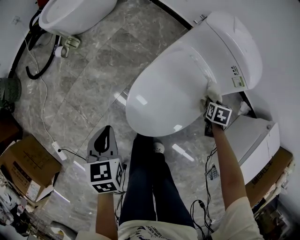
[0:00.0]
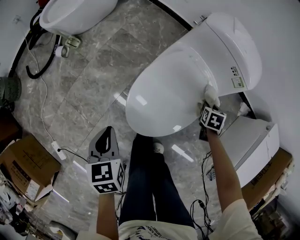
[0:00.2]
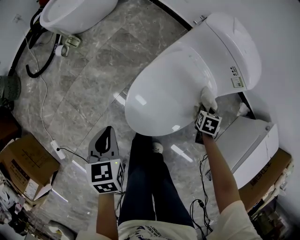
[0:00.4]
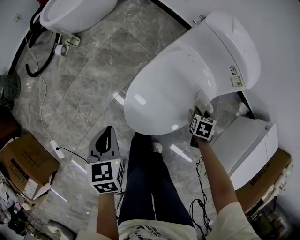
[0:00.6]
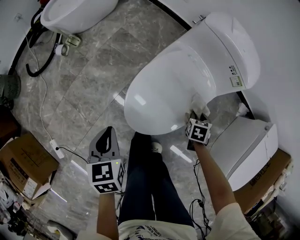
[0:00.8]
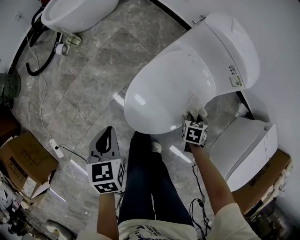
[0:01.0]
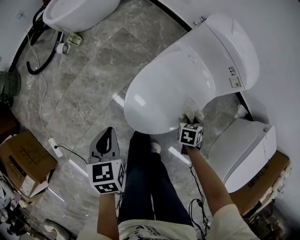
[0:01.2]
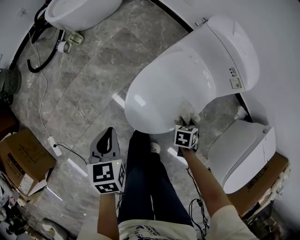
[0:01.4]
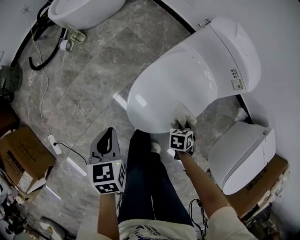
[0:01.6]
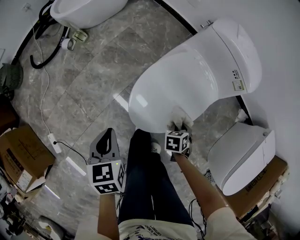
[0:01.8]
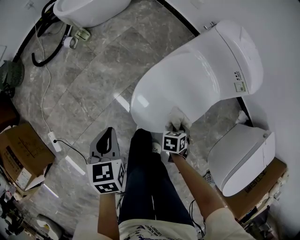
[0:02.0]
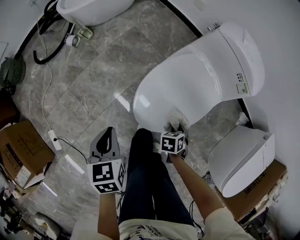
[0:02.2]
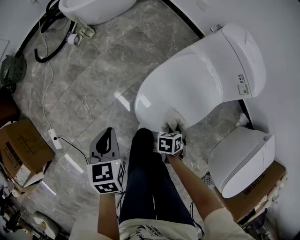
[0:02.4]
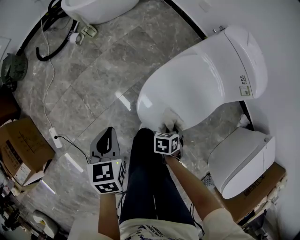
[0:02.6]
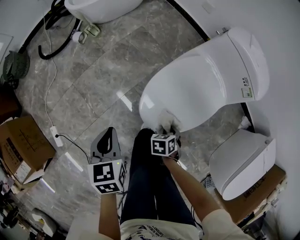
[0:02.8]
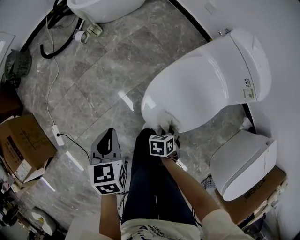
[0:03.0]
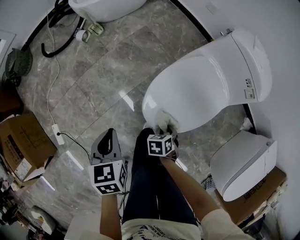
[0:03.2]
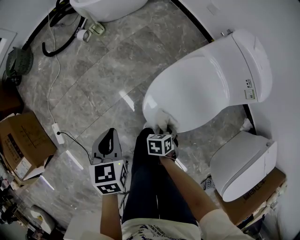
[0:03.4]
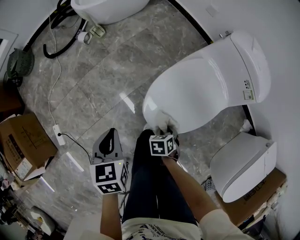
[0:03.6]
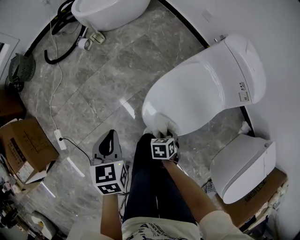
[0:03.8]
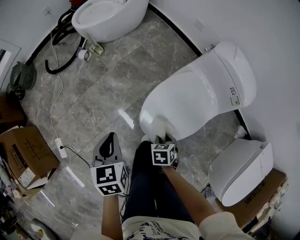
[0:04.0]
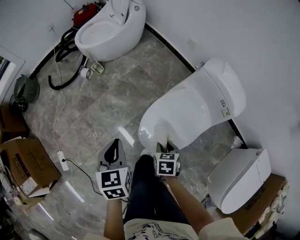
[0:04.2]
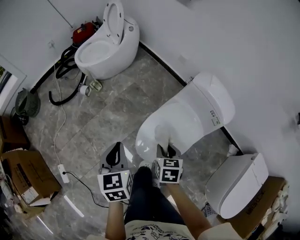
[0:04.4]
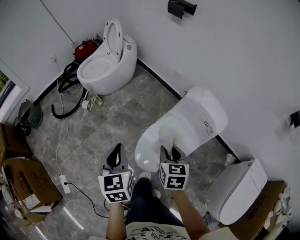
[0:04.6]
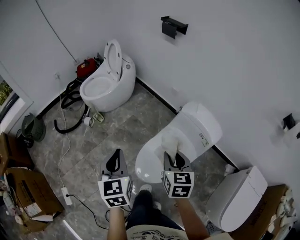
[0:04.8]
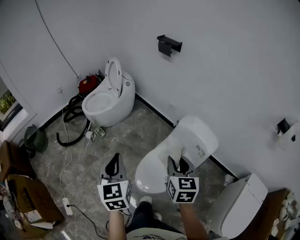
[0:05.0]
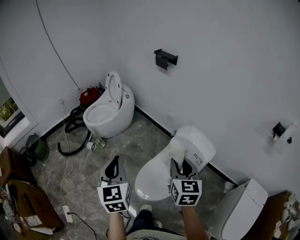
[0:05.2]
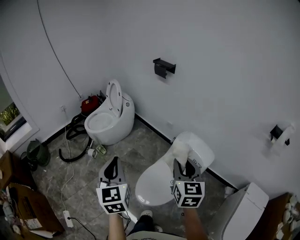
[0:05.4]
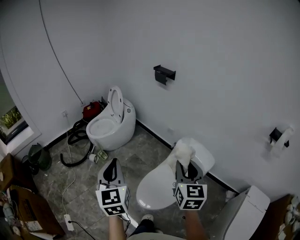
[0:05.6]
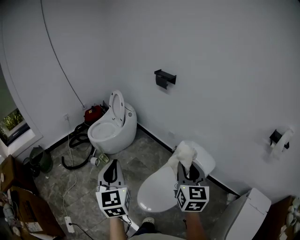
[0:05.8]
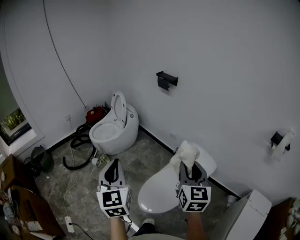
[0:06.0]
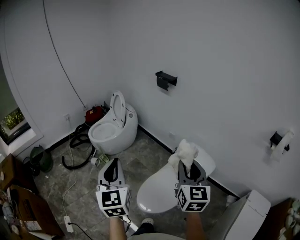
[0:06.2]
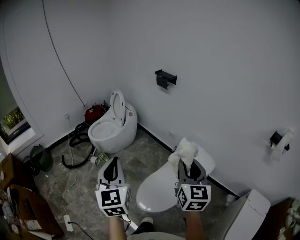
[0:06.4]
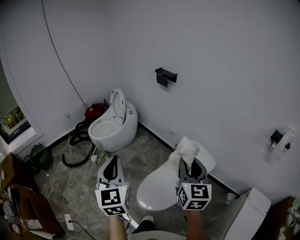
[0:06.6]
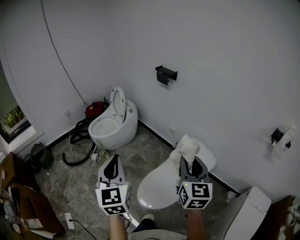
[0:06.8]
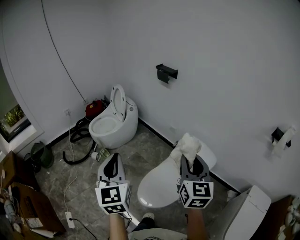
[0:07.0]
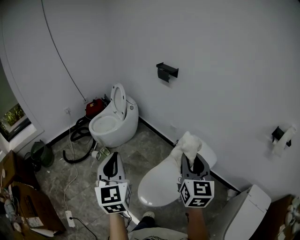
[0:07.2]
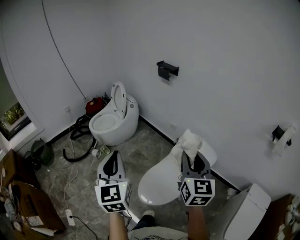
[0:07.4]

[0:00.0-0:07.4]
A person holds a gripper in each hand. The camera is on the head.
0:00.0 to 0:01.4: The right gripper travels backward and to the left by roughly 15 cm.
0:01.4 to 0:03.0: The left gripper changes place by about 10 cm, while the right gripper changes place by roughly 20 cm.
0:03.0 to 0:04.4: The left gripper moves upward, roughly 20 cm. The right gripper is displaced upward by some 25 cm, and turns by approximately 30 degrees.
0:04.4 to 0:06.0: The two grippers go about 35 cm upward. The left gripper points its fingers some 30 degrees further upward; the right gripper angles its fingers upward, by roughly 40 degrees.
0:06.0 to 0:07.4: Both grippers stay put.

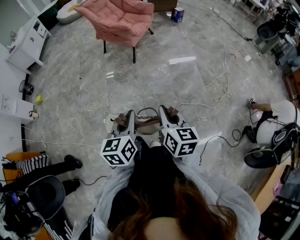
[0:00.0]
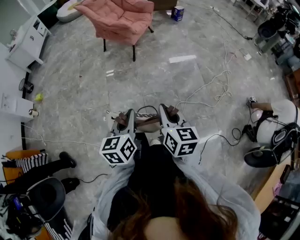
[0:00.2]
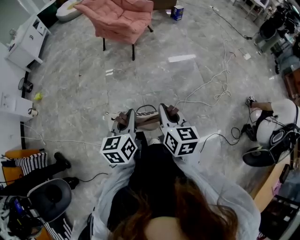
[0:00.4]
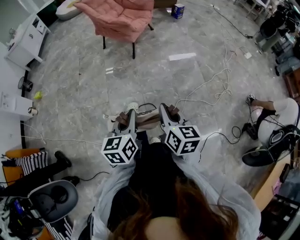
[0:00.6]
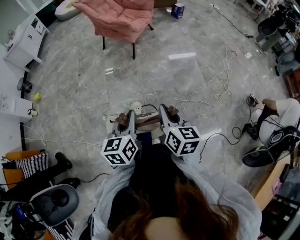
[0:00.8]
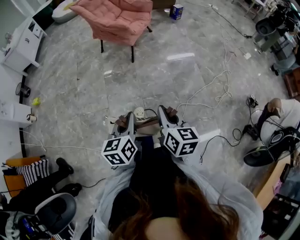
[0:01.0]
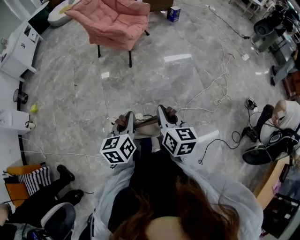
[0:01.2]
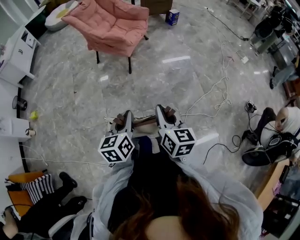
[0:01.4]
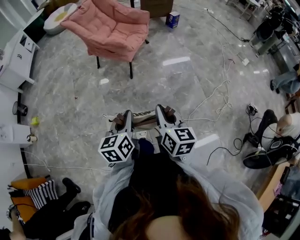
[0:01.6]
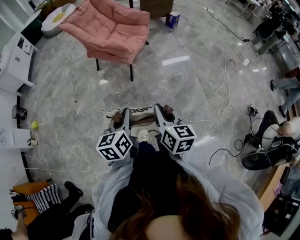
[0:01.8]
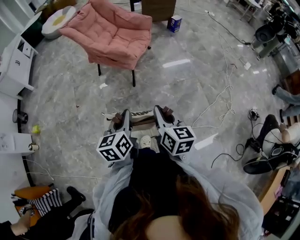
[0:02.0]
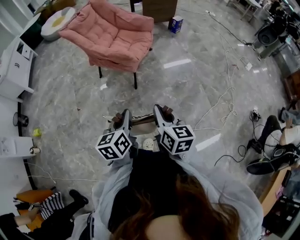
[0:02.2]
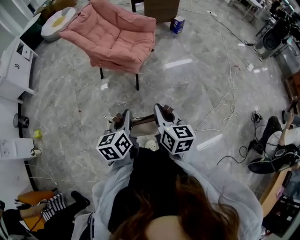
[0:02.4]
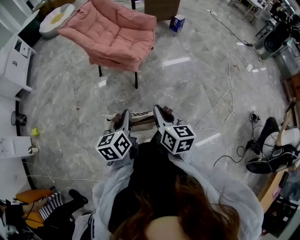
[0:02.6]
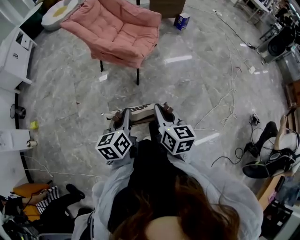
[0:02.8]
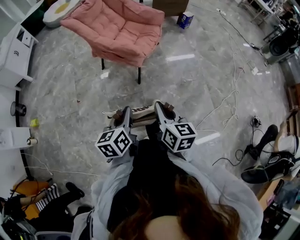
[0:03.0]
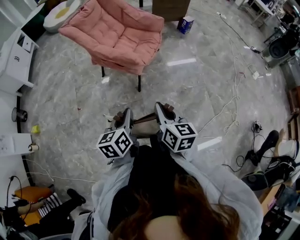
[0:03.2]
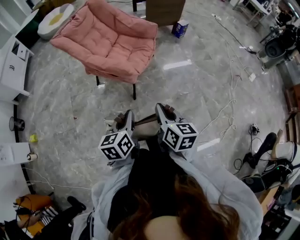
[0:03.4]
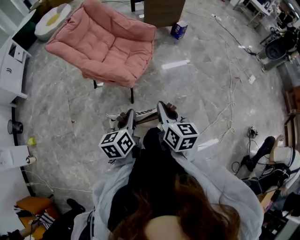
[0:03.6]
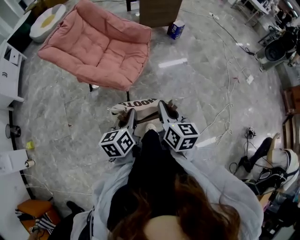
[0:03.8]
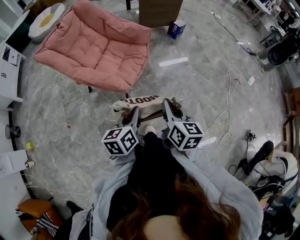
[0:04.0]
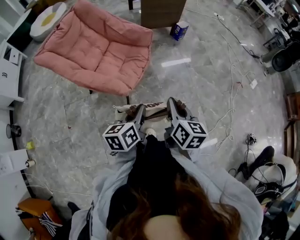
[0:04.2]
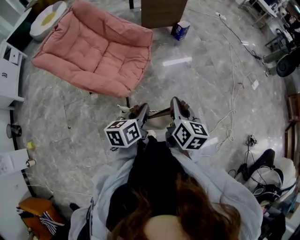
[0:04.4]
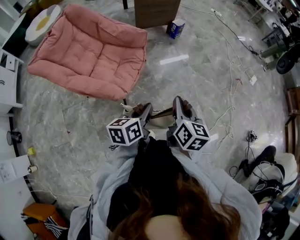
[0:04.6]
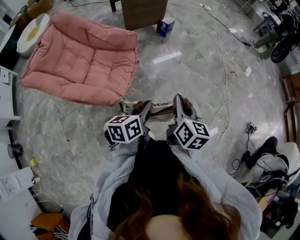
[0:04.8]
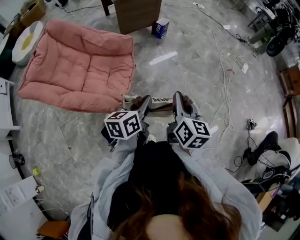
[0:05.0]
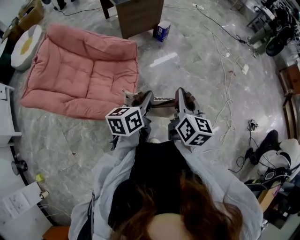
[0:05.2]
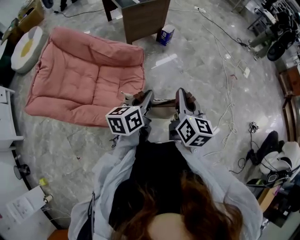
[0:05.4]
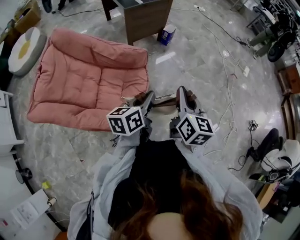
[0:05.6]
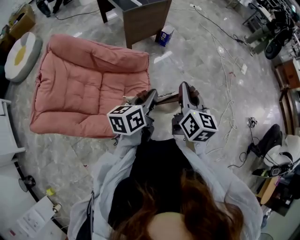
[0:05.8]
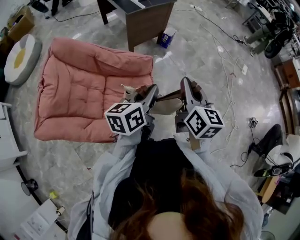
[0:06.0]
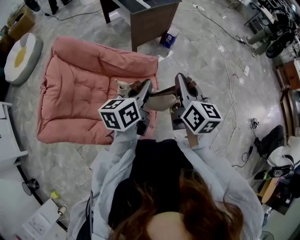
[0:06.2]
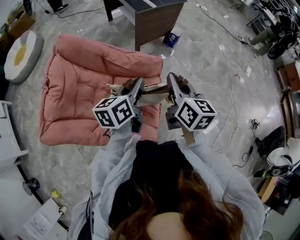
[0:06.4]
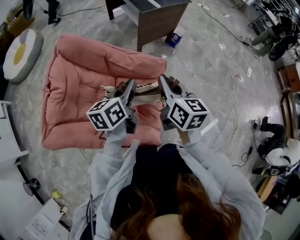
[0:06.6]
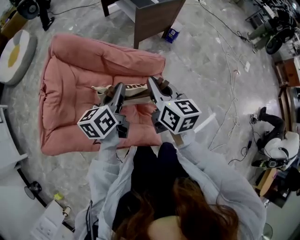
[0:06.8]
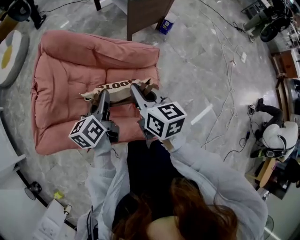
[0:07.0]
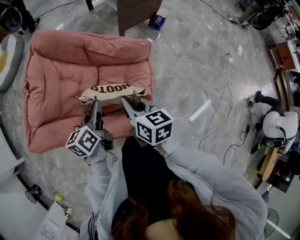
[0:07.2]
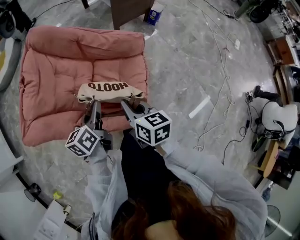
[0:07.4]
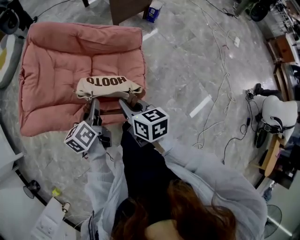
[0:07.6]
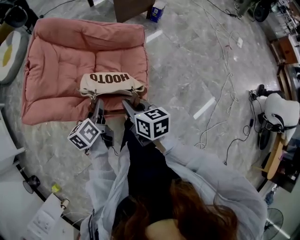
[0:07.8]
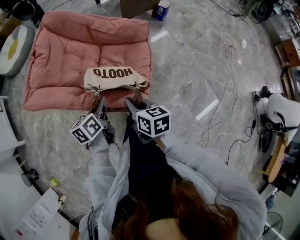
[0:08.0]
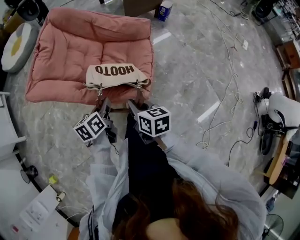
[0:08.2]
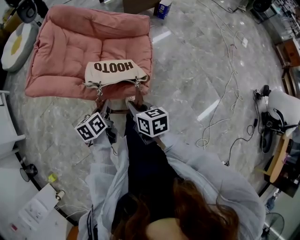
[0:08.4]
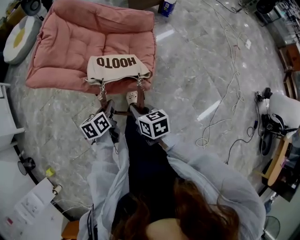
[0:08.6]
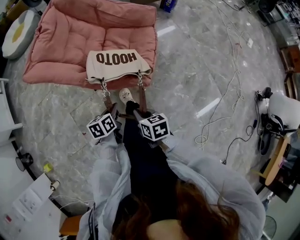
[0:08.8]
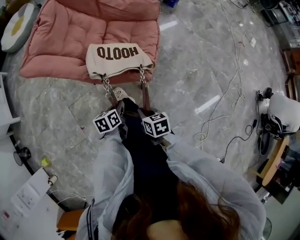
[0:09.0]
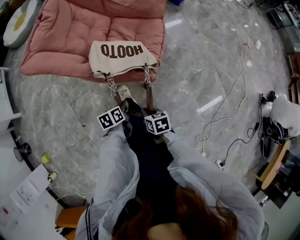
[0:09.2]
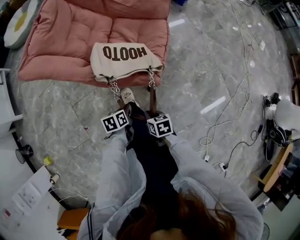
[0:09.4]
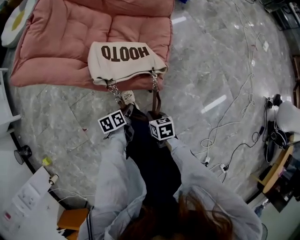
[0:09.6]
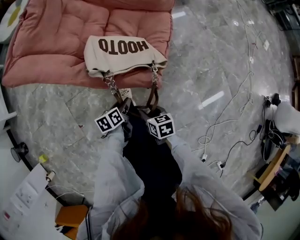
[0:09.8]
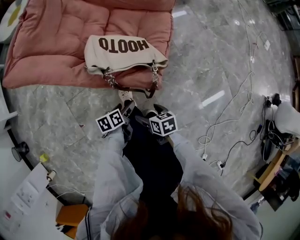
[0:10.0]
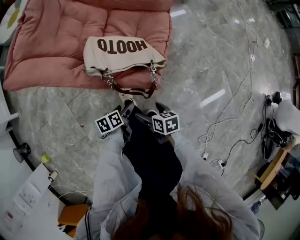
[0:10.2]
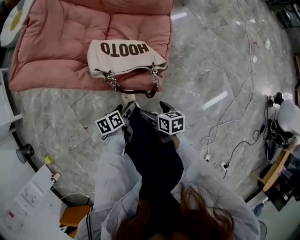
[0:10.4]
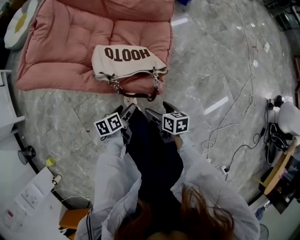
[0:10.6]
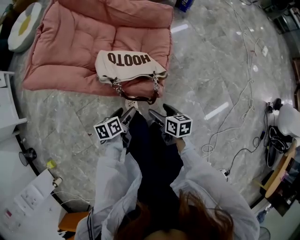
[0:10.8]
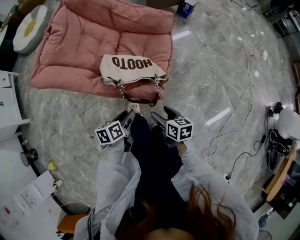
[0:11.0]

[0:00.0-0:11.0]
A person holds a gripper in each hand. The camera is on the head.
0:00.0 to 0:01.6: Both grippers move forward, roughly 25 cm.
0:01.6 to 0:03.2: Both grippers travel together forward, approximately 25 cm.
0:03.2 to 0:04.8: The right gripper moves approximately 35 cm, and changes its angle by some 30 degrees; the left gripper ends up about 40 cm from where it was, and changes its angle by about 30 degrees.
0:04.8 to 0:06.2: The grippers both shift to the left and forward by roughly 35 cm.
0:06.2 to 0:07.8: The left gripper shifts roughly 30 cm to the left, backward and downward, and turns by about 20 degrees. Meanwhile the right gripper heads backward, downward and to the left, covering some 30 cm, and swivels about 30 degrees.
0:07.8 to 0:09.4: Both grippers travel together downward and backward, about 30 cm. The right gripper swivels roughly 30 degrees. The left gripper changes its angle by approximately 30 degrees.
0:09.4 to 0:11.0: The right gripper travels upward, forward and to the right by some 15 cm, rotates approximately 20 degrees, and opens, while the left gripper moves upward, some 10 cm, and opens.

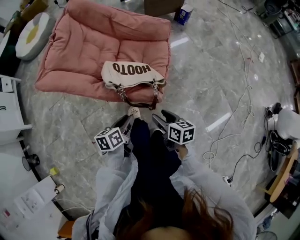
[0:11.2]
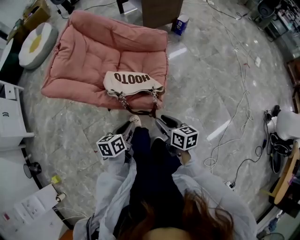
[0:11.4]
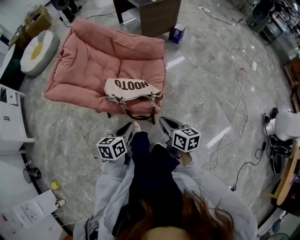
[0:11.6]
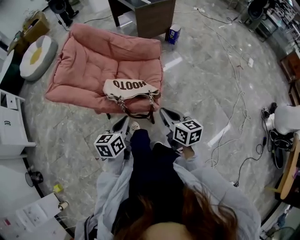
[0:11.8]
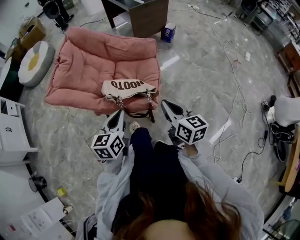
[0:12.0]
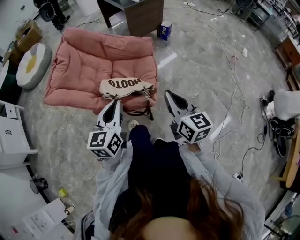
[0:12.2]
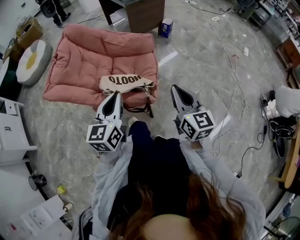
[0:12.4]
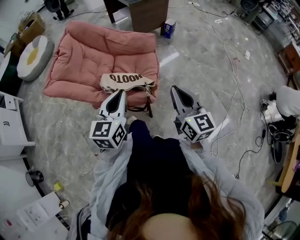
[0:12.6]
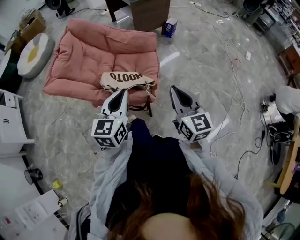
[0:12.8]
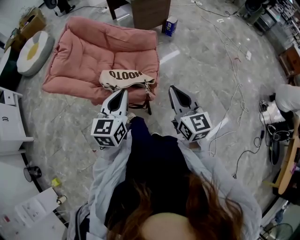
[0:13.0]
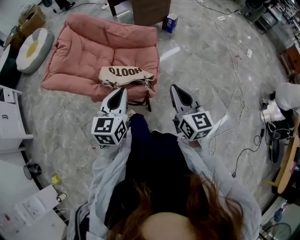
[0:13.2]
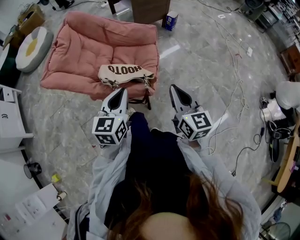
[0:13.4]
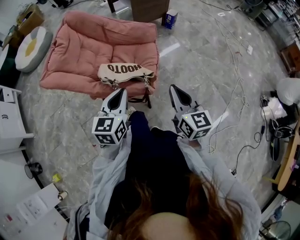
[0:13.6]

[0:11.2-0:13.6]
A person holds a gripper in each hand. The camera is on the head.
0:11.2 to 0:12.4: Both grippers travel together upward, about 25 cm. The left gripper rotates some 50 degrees; the right gripper rotates about 40 degrees, and closes.
0:12.4 to 0:13.6: The left gripper ends up roughly 5 cm from where it was.

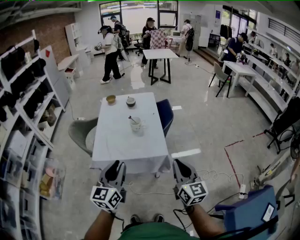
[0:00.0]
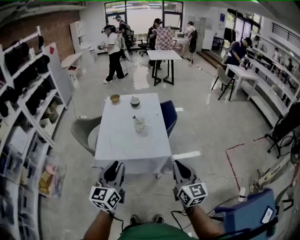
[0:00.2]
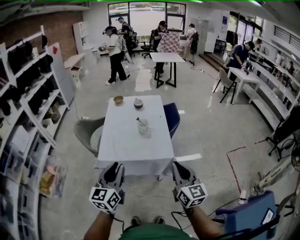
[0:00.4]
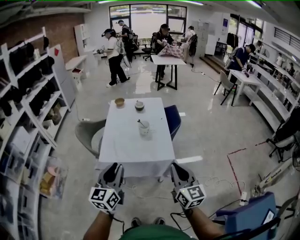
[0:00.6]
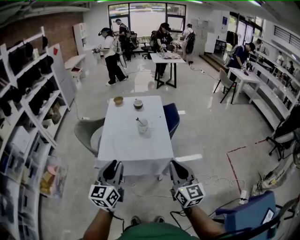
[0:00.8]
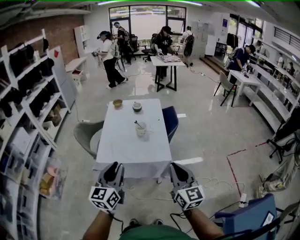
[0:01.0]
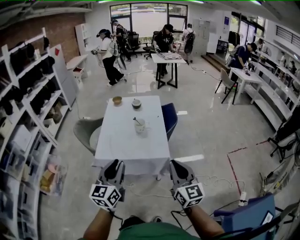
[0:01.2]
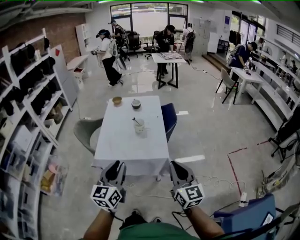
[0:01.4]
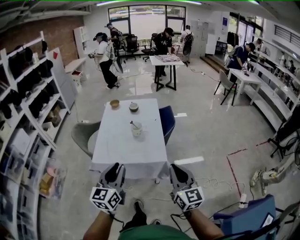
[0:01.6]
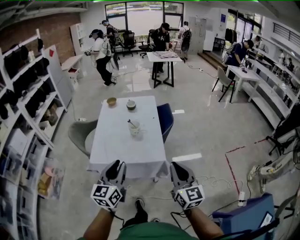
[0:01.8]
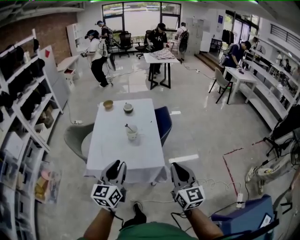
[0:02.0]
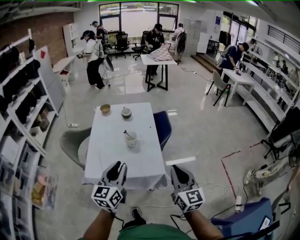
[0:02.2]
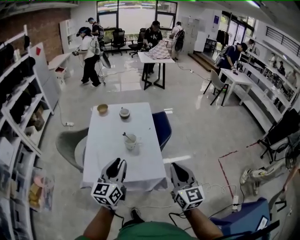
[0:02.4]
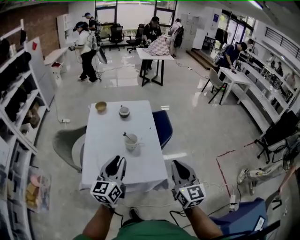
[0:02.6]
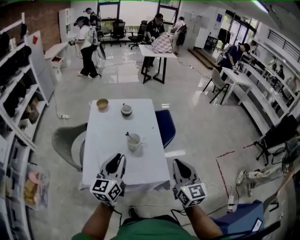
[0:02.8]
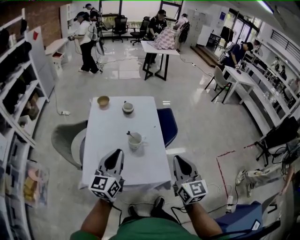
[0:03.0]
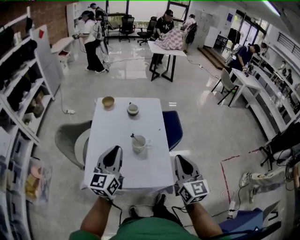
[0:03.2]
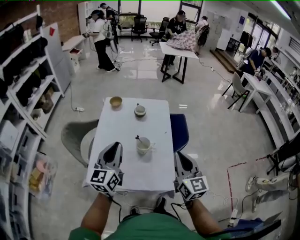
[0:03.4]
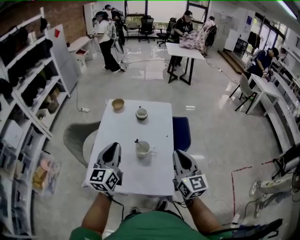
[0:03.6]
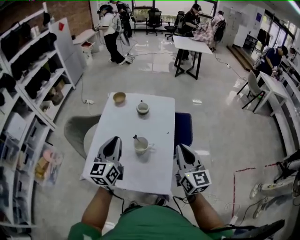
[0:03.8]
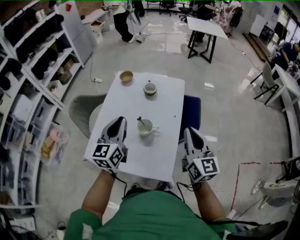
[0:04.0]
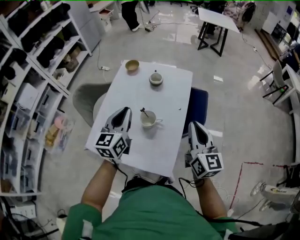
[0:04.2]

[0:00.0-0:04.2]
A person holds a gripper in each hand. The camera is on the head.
0:01.4 to 0:02.8: The grippers both shift forward by approximately 25 cm.
0:02.8 to 0:04.2: The right gripper travels forward and to the right by roughly 25 cm, and rotates about 20 degrees, while the left gripper goes roughly 15 cm forward, and rotates about 20 degrees.
